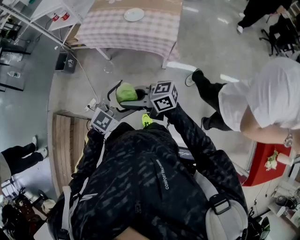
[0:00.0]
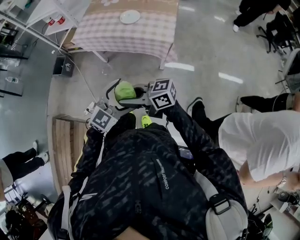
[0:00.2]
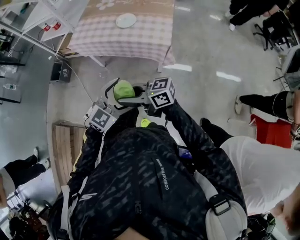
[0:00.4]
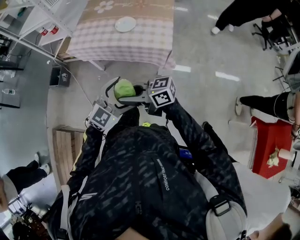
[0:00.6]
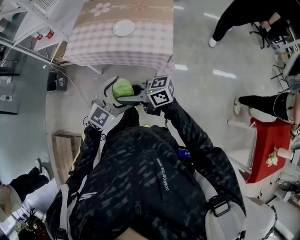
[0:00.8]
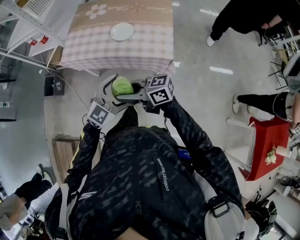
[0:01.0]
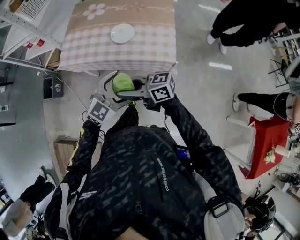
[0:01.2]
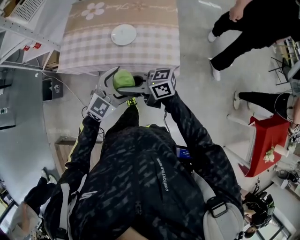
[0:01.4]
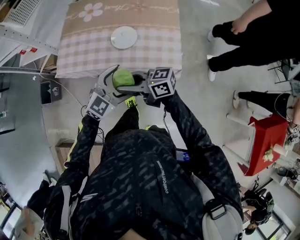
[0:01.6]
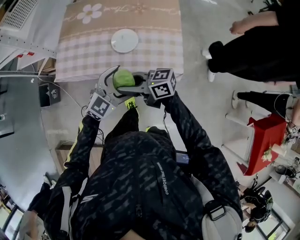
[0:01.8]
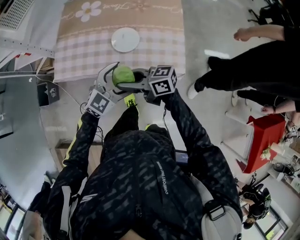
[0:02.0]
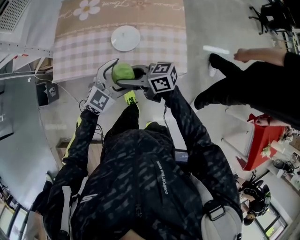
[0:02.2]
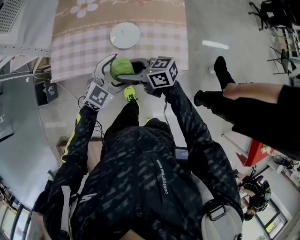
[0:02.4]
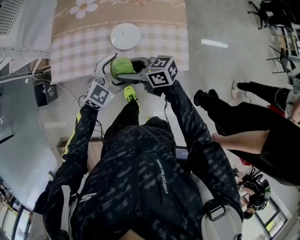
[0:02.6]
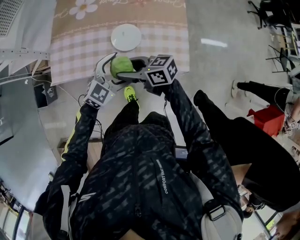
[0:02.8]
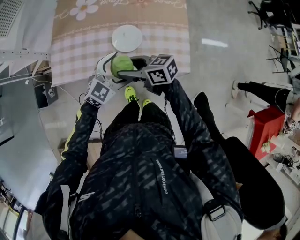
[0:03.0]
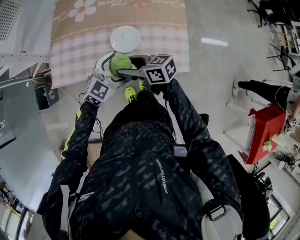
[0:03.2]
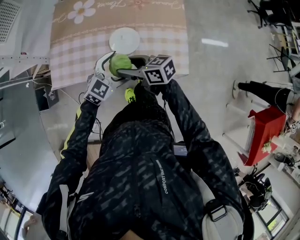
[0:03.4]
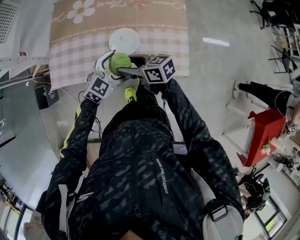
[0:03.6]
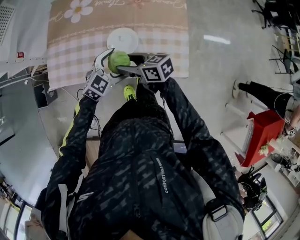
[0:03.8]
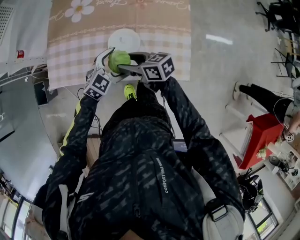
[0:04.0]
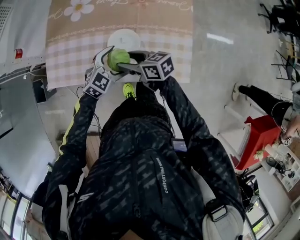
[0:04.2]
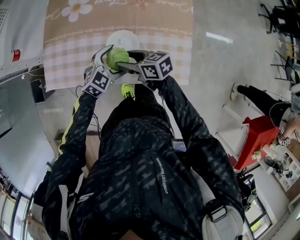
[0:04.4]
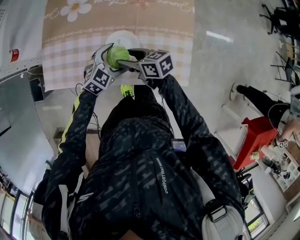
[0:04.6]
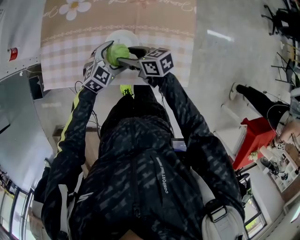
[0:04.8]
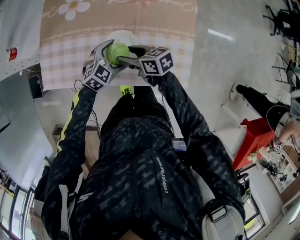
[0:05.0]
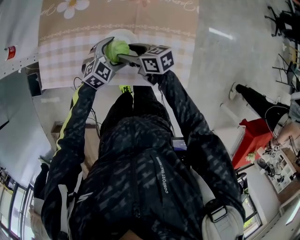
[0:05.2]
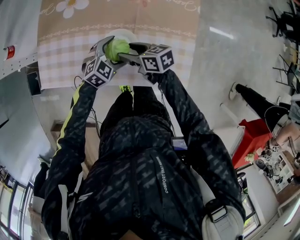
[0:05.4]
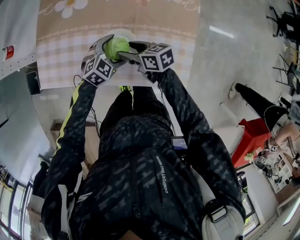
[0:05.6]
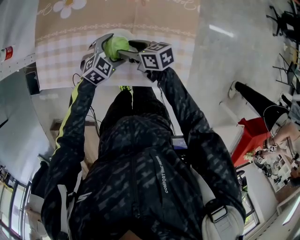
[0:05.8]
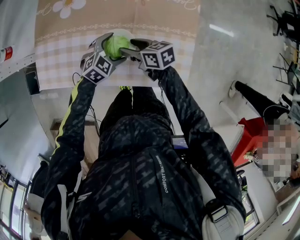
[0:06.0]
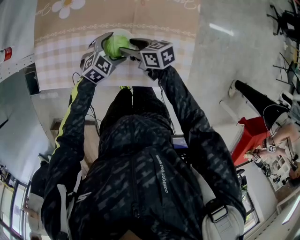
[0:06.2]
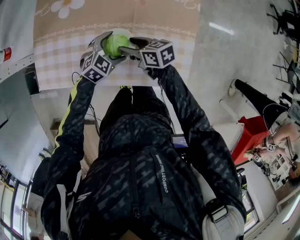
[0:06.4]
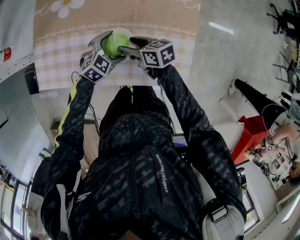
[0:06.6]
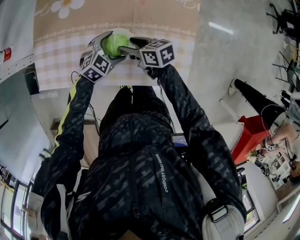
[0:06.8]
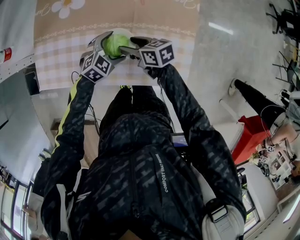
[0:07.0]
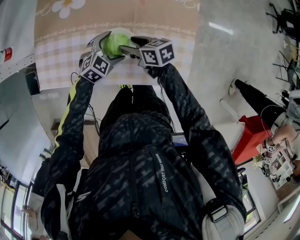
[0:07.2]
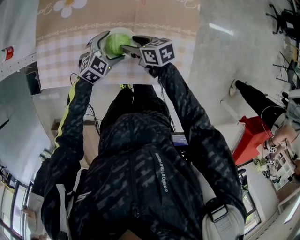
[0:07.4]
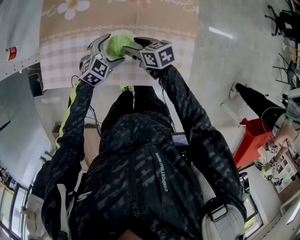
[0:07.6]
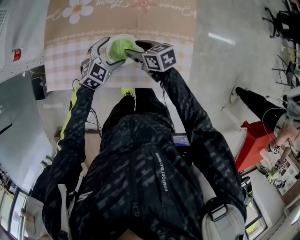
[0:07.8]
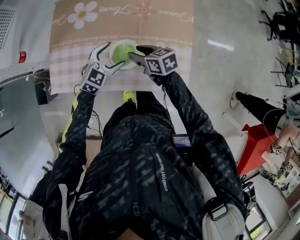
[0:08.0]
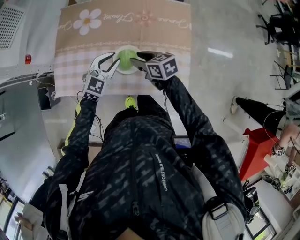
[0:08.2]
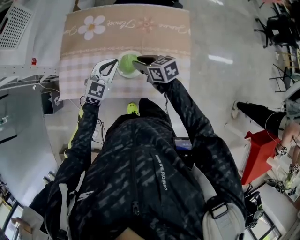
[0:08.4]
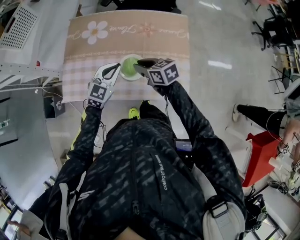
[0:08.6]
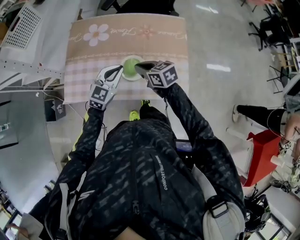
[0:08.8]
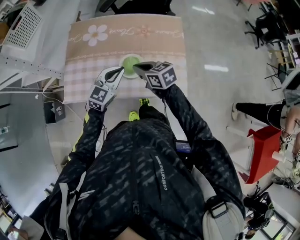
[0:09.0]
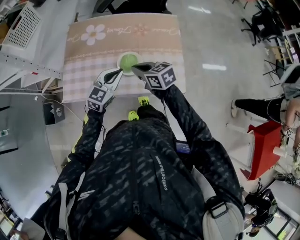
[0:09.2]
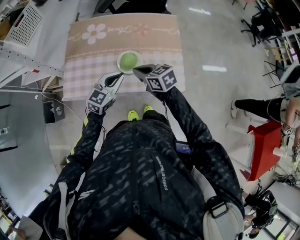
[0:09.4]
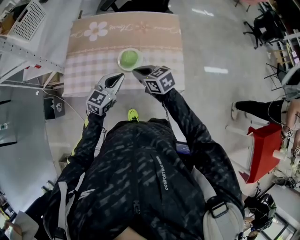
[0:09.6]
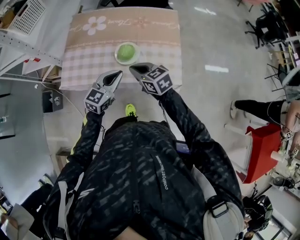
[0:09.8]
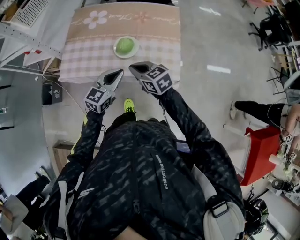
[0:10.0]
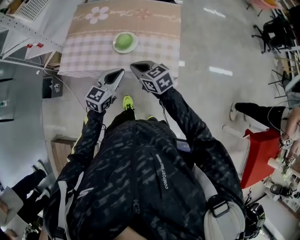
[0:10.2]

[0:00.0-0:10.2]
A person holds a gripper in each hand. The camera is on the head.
0:00.0 to 0:01.4: The right gripper shifts by approximately 35 cm, while the left gripper shifts by approximately 35 cm.
0:01.4 to 0:03.0: The left gripper changes place by roughly 20 cm. Meanwhile the right gripper shifts by some 20 cm, swivels approximately 20 degrees, and opens its fingers.
0:03.0 to 0:04.4: The left gripper ends up about 15 cm from where it was. Meanwhile the right gripper shifts by approximately 15 cm.
0:04.4 to 0:05.8: The two grippers go roughly 5 cm downward.
0:05.8 to 0:07.2: The grippers stay close to where they were, moving slightly.
0:07.2 to 0:08.8: Both grippers move upward, some 20 cm. The left gripper turns by approximately 30 degrees, and closes up. The right gripper closes its fingers.
0:08.8 to 0:10.2: The two grippers go some 20 cm backward.

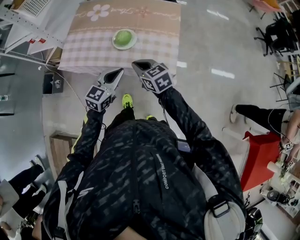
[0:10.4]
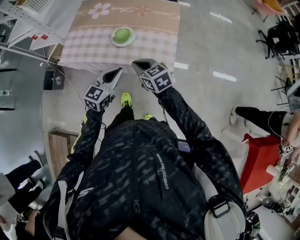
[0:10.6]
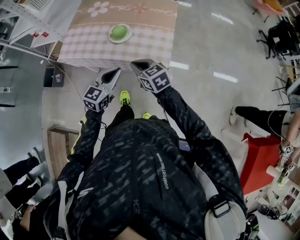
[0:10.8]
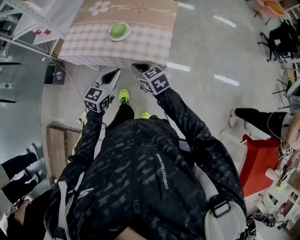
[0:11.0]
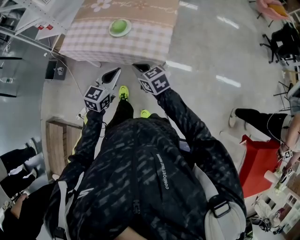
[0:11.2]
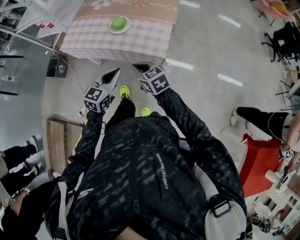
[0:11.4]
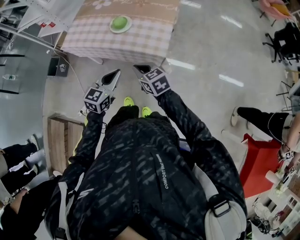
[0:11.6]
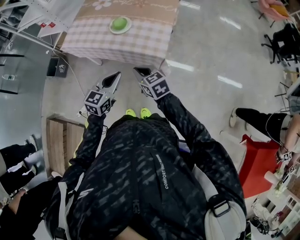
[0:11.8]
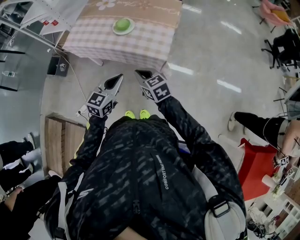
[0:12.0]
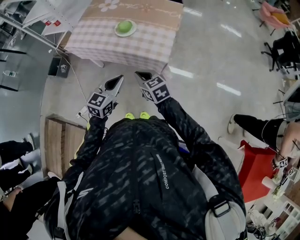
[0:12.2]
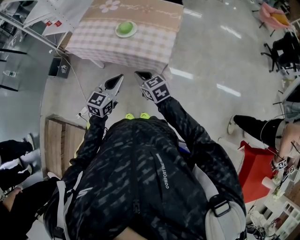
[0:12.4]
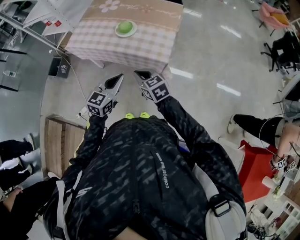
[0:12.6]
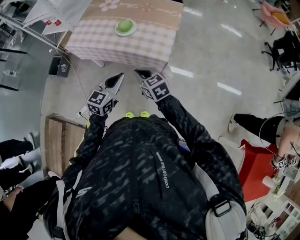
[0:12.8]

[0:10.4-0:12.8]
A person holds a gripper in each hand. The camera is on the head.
0:10.4 to 0:11.6: The left gripper shifts roughly 15 cm backward. The right gripper is displaced backward and to the right by some 15 cm.
0:11.6 to 0:12.8: The grippers move only a little.

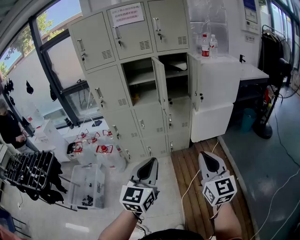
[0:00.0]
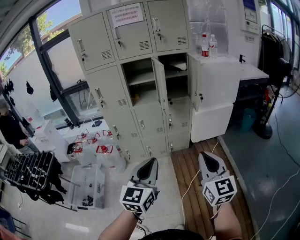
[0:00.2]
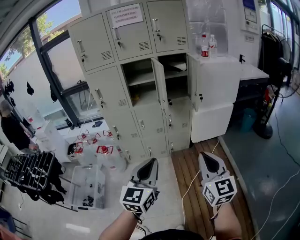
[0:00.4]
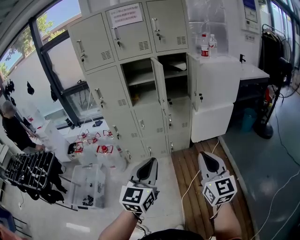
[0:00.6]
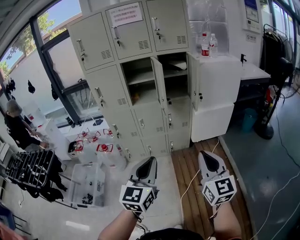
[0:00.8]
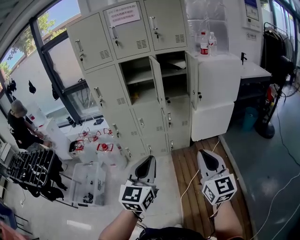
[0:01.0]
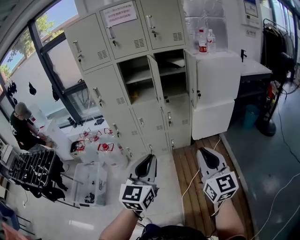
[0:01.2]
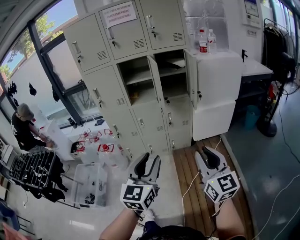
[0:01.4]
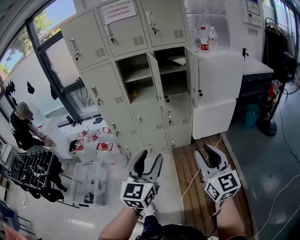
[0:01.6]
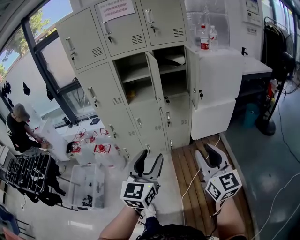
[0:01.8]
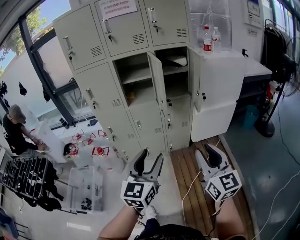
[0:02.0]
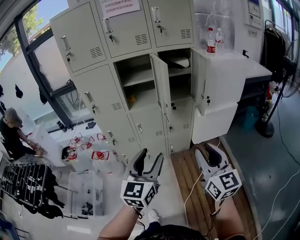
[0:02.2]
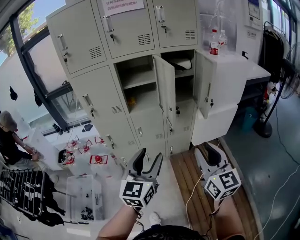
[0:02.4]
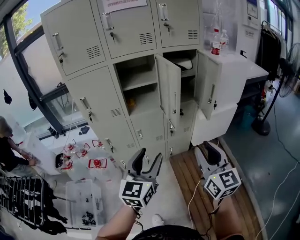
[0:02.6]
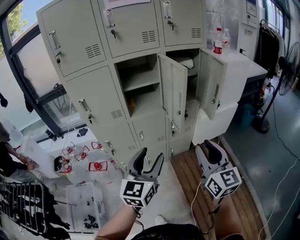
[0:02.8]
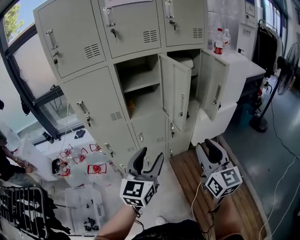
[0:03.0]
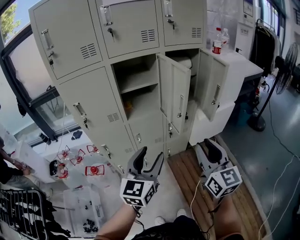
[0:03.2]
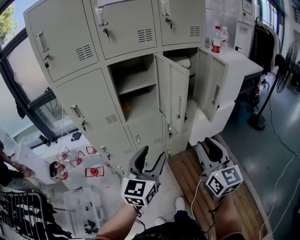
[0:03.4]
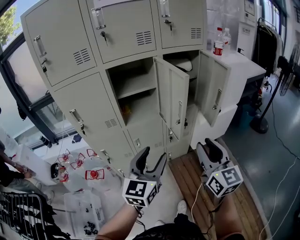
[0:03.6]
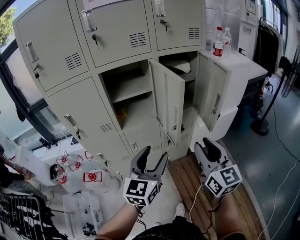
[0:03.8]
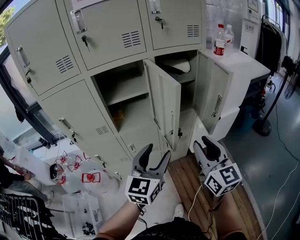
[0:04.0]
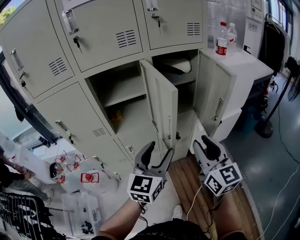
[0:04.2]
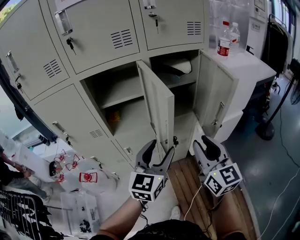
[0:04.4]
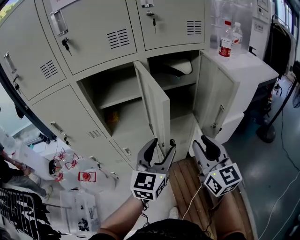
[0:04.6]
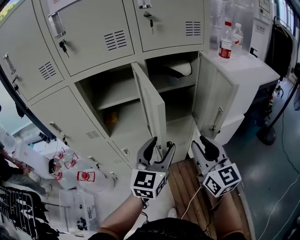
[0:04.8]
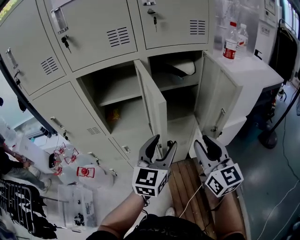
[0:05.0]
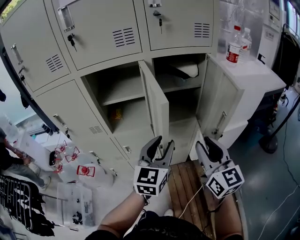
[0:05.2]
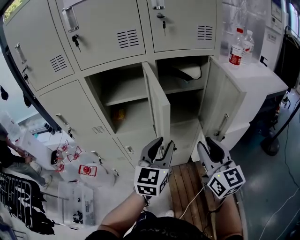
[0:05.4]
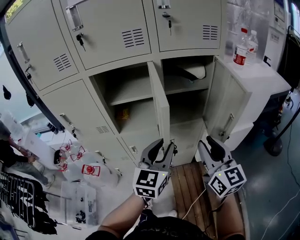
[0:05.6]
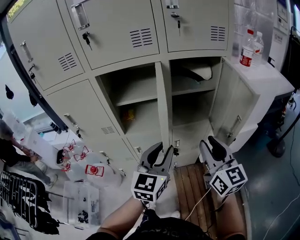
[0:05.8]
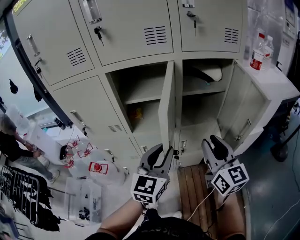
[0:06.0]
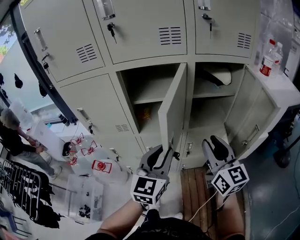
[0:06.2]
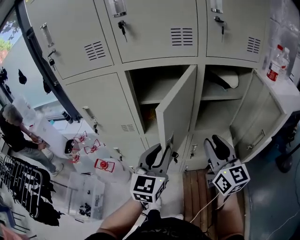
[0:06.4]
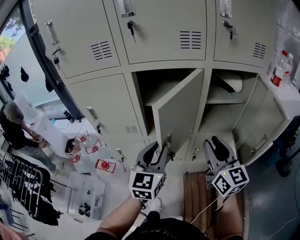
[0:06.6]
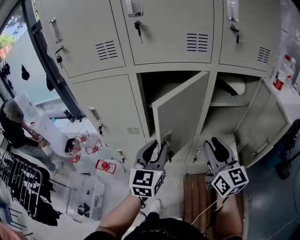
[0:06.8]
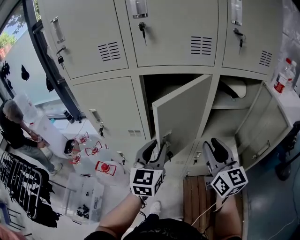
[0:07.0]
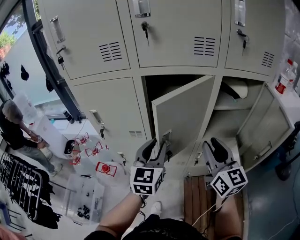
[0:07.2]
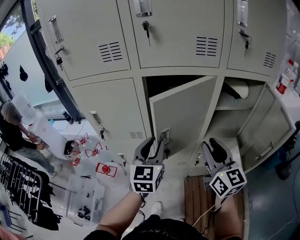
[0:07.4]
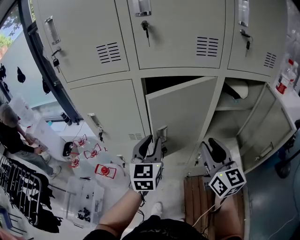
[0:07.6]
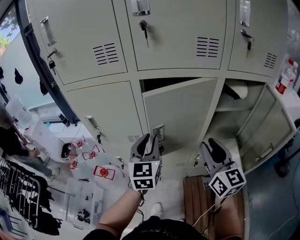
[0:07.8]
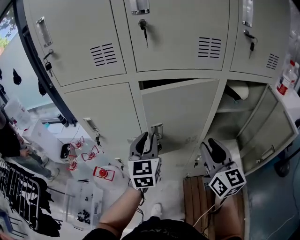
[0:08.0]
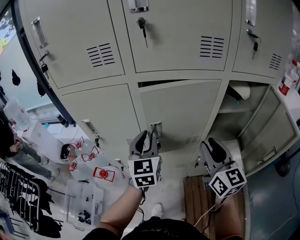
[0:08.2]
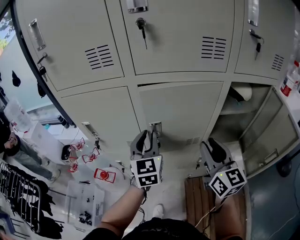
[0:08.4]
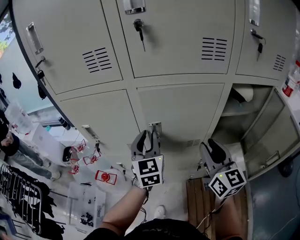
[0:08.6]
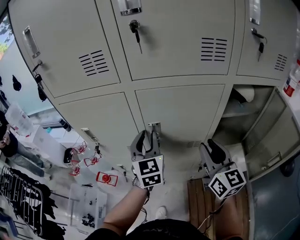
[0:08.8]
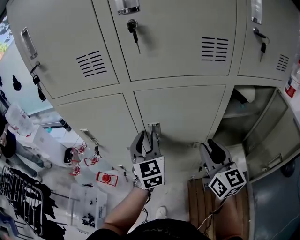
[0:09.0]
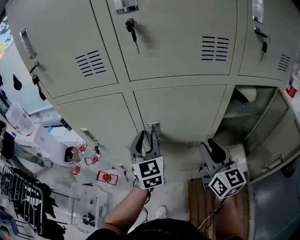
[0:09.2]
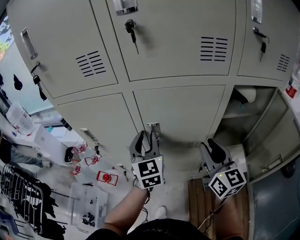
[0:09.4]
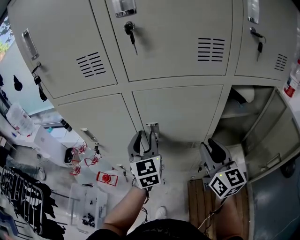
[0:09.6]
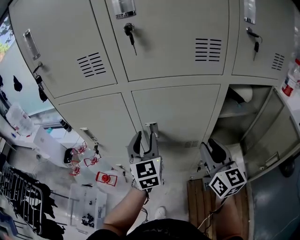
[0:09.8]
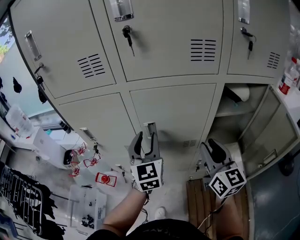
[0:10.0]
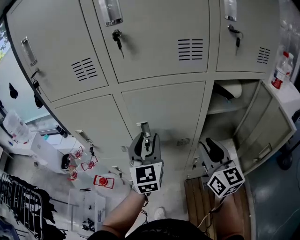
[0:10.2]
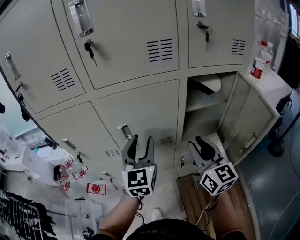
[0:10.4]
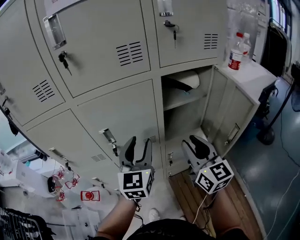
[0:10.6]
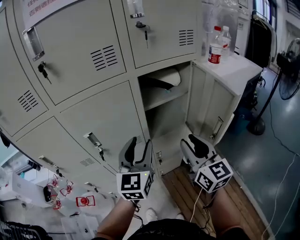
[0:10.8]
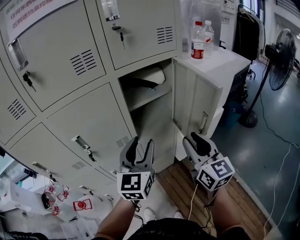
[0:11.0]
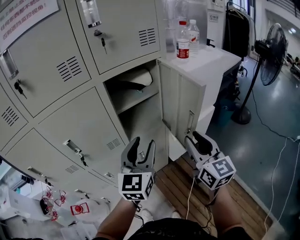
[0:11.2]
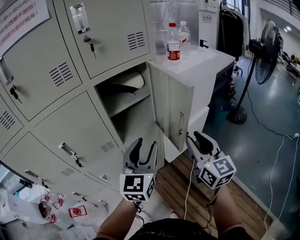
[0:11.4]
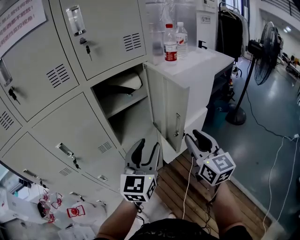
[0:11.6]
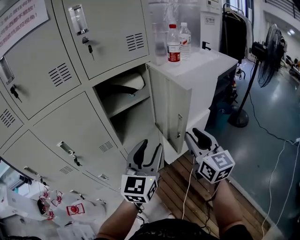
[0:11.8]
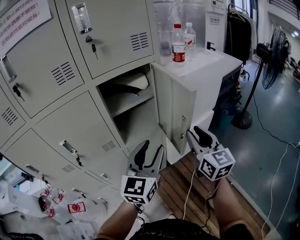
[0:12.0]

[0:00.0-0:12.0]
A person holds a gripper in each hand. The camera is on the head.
0:00.0 to 0:01.6: The left gripper shifts by roughly 5 cm, and opens up; the right gripper moves roughly 5 cm, and opens up.
0:01.6 to 0:03.0: The grippers both shift forward and to the left by approximately 30 cm.
0:03.0 to 0:04.4: The left gripper goes approximately 25 cm forward and to the right; the right gripper shifts some 20 cm forward.
0:04.4 to 0:06.0: The left gripper heads to the left, covering some 5 cm, and closes up, while the right gripper travels forward by some 5 cm.
0:06.0 to 0:07.6: Both grippers travel together to the left and forward, about 20 cm.
0:07.6 to 0:09.0: The grippers both shift forward by roughly 10 cm.
0:09.0 to 0:10.4: The left gripper is displaced to the right and backward by about 10 cm. The right gripper goes some 5 cm backward.
0:10.4 to 0:12.0: The left gripper moves about 30 cm, and swivels roughly 40 degrees. Meanwhile the right gripper changes place by some 30 cm, and swivels some 20 degrees.
